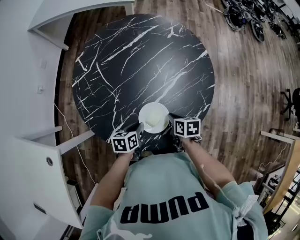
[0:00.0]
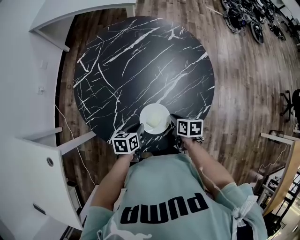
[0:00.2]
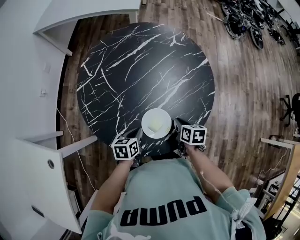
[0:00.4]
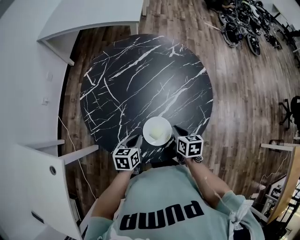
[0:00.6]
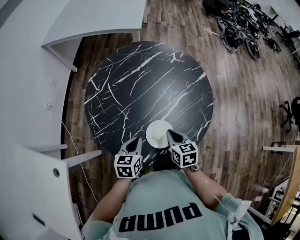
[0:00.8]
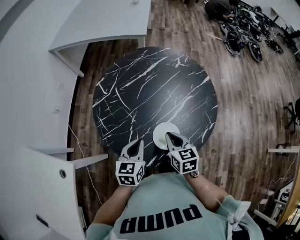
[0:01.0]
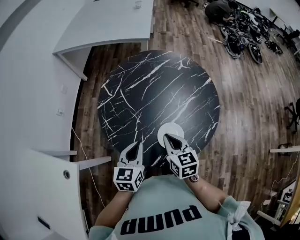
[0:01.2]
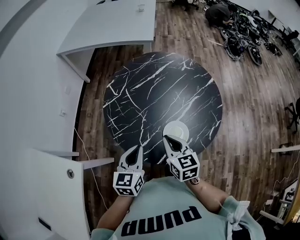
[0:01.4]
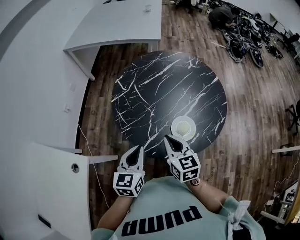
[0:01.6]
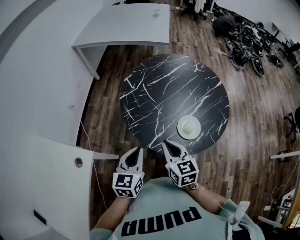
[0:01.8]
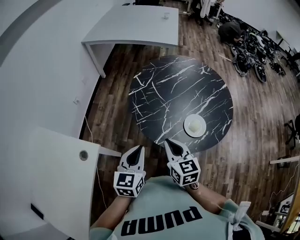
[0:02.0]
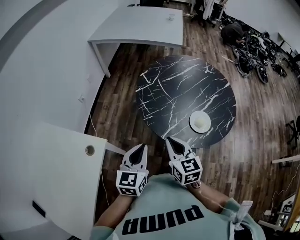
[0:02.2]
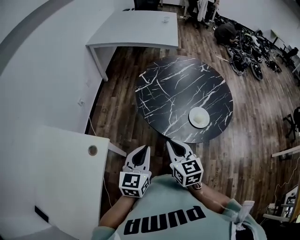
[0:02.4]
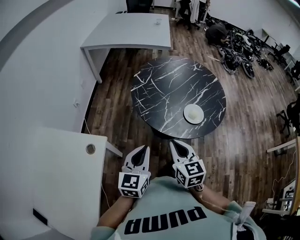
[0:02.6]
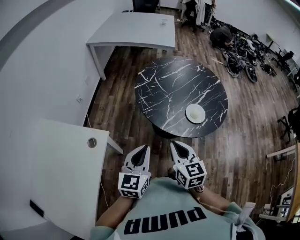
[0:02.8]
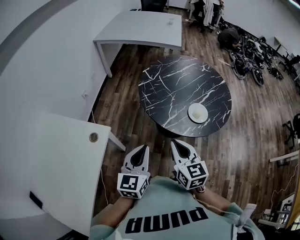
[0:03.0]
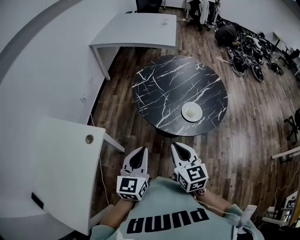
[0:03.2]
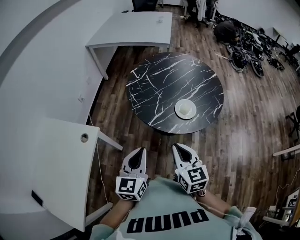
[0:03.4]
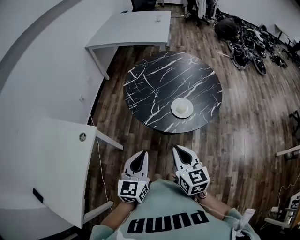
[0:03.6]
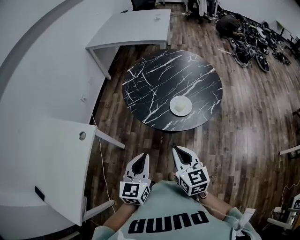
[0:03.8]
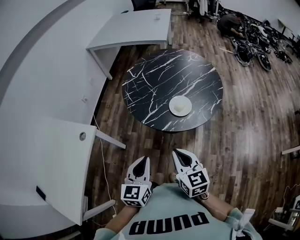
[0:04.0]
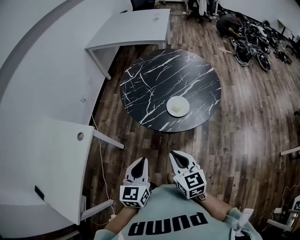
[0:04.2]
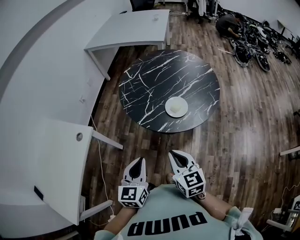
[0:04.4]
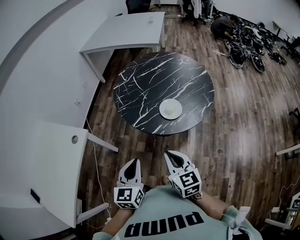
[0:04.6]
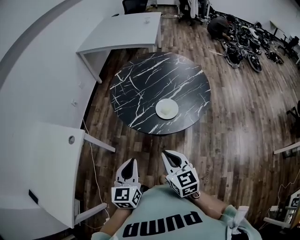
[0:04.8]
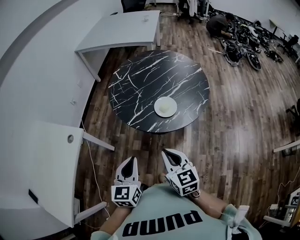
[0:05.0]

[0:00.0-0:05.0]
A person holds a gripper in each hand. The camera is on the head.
0:00.0 to 0:01.6: The two grippers go some 30 cm upward and to the left. The right gripper swivels about 40 degrees. Meanwhile the left gripper rotates approximately 40 degrees.
0:01.6 to 0:03.4: The grippers both shift backward by some 25 cm.
0:03.4 to 0:05.0: The right gripper heads to the right, covering approximately 10 cm, while the left gripper travels to the right and backward by about 10 cm.

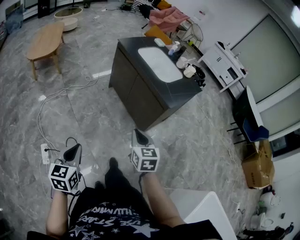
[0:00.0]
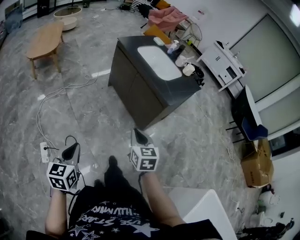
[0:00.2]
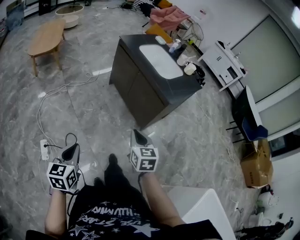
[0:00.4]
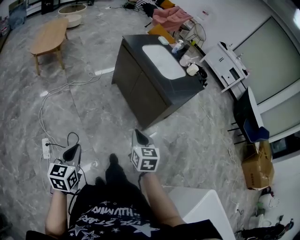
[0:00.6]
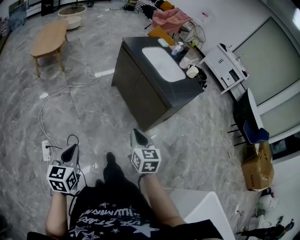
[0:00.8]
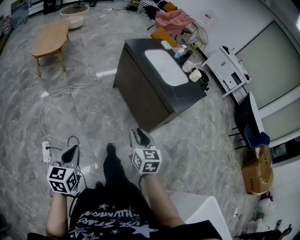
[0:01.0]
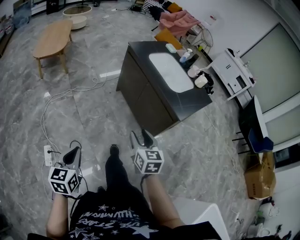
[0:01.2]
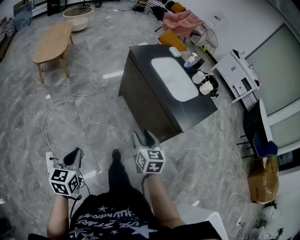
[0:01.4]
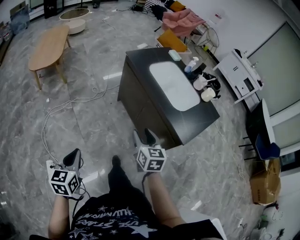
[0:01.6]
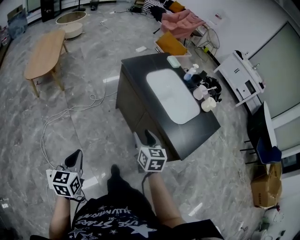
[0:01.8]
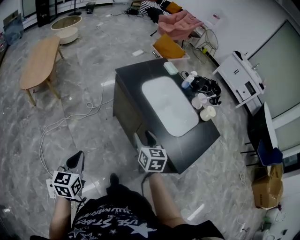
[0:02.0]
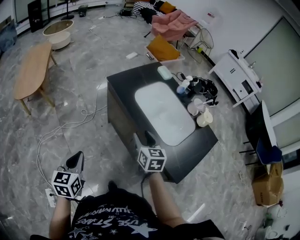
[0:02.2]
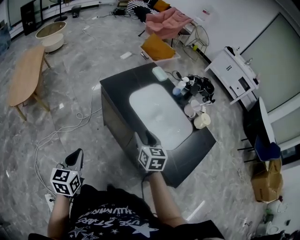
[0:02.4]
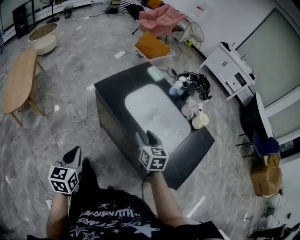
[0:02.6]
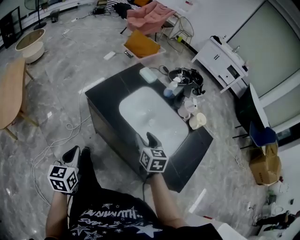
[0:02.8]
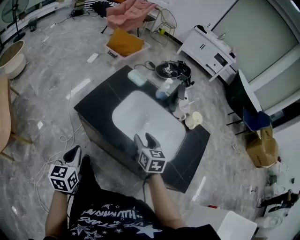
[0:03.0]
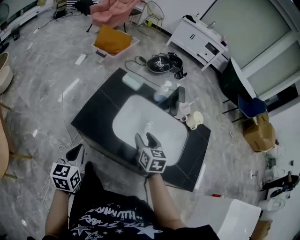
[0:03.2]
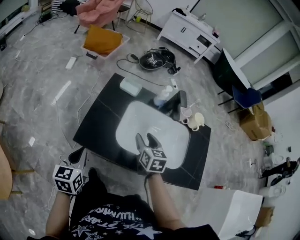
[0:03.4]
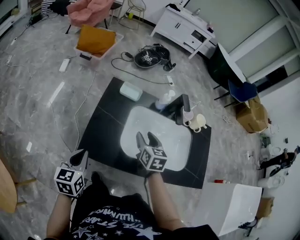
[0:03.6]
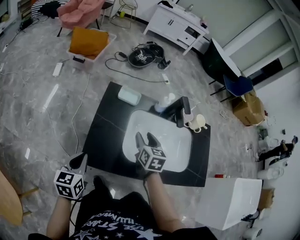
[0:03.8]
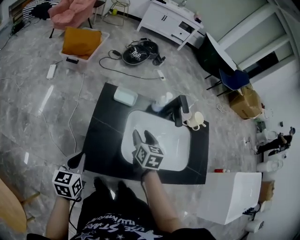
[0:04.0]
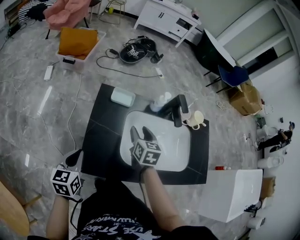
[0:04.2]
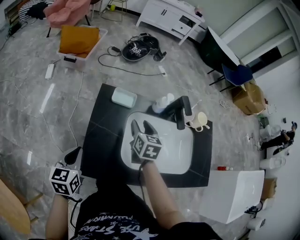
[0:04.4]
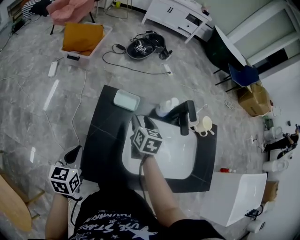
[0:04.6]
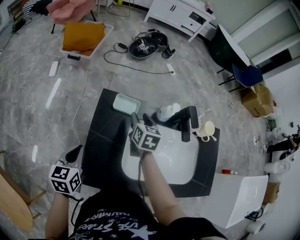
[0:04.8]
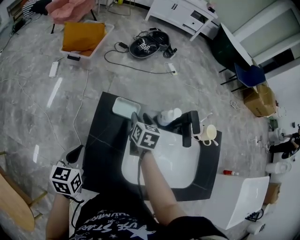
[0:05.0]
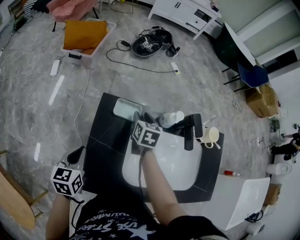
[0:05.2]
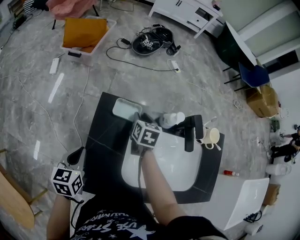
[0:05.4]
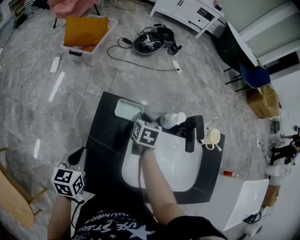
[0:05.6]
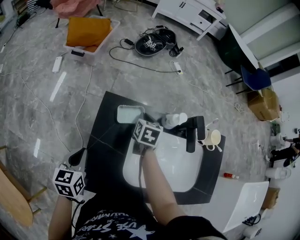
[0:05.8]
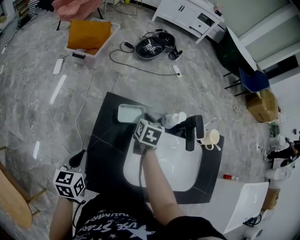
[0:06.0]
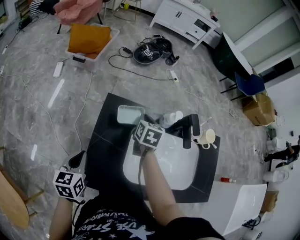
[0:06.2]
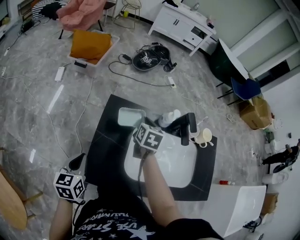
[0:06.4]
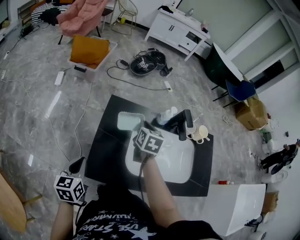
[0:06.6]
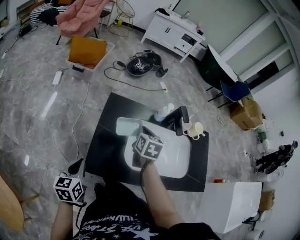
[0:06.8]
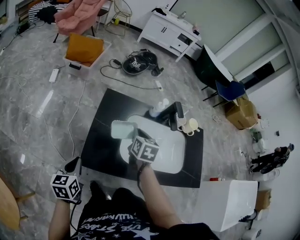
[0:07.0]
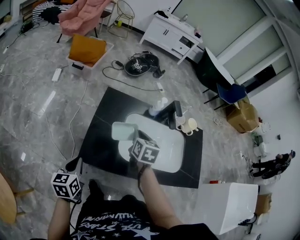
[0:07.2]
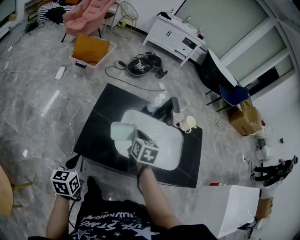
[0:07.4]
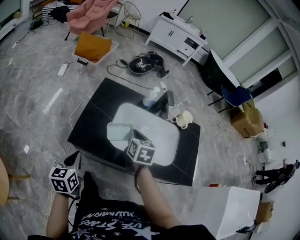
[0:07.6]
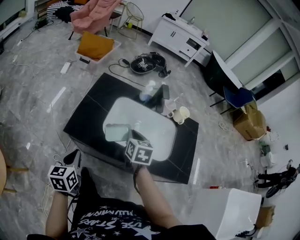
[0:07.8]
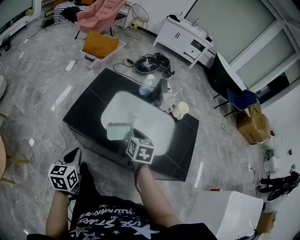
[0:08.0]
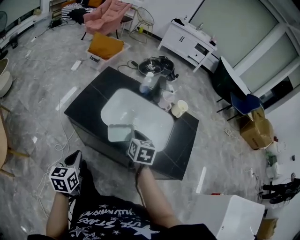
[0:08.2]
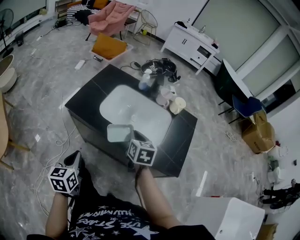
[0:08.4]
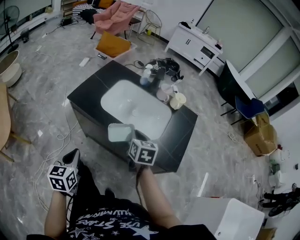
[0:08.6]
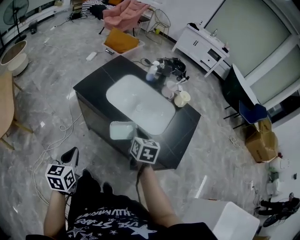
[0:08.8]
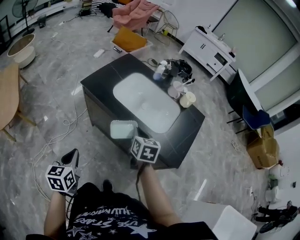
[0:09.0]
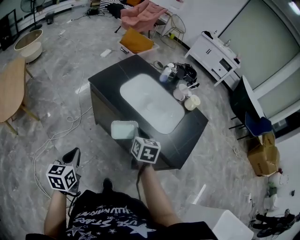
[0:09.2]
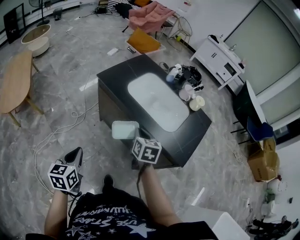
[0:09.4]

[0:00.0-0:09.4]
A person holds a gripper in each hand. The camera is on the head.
0:00.0 to 0:01.6: The grippers both shift forward by about 25 cm. The right gripper opens.
0:01.6 to 0:03.2: The pair of grippers is taken approximately 60 cm. The left gripper rotates approximately 40 degrees. The right gripper swivels some 40 degrees.
0:03.2 to 0:04.8: The grippers both shift forward by about 25 cm. The right gripper swivels some 20 degrees.
0:04.8 to 0:06.2: The right gripper closes up.
0:06.2 to 0:07.8: The left gripper moves backward and to the right, roughly 25 cm; the right gripper shifts about 30 cm backward.
0:07.8 to 0:09.4: Both grippers travel together backward, roughly 30 cm. The right gripper turns by approximately 20 degrees. Meanwhile the left gripper changes its angle by roughly 20 degrees.

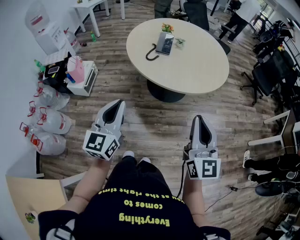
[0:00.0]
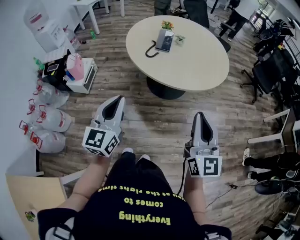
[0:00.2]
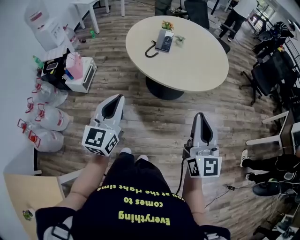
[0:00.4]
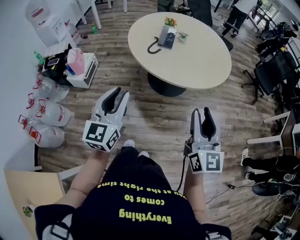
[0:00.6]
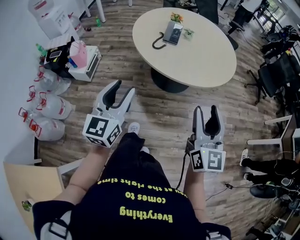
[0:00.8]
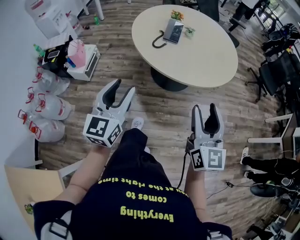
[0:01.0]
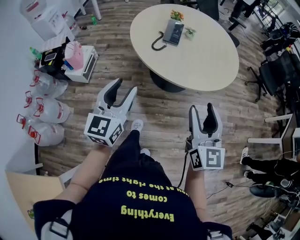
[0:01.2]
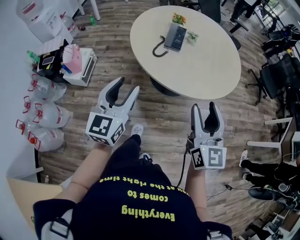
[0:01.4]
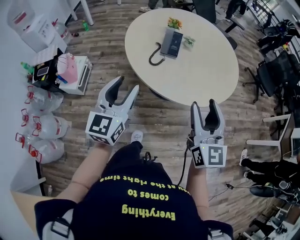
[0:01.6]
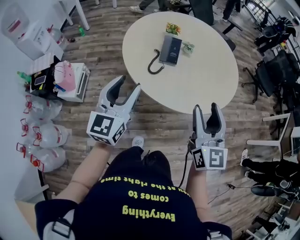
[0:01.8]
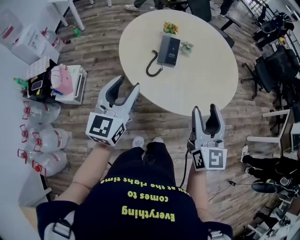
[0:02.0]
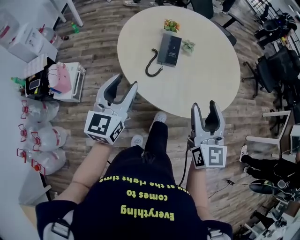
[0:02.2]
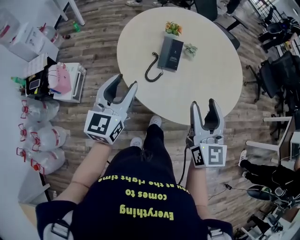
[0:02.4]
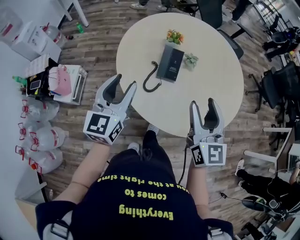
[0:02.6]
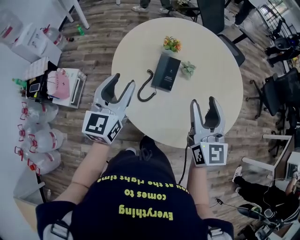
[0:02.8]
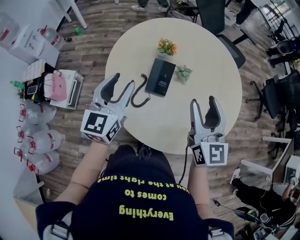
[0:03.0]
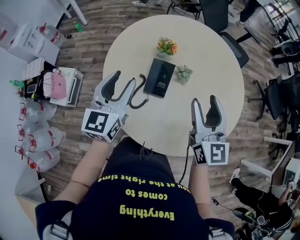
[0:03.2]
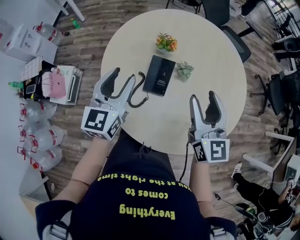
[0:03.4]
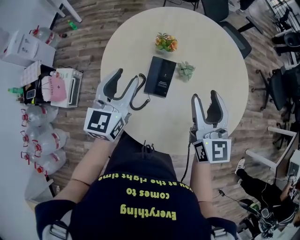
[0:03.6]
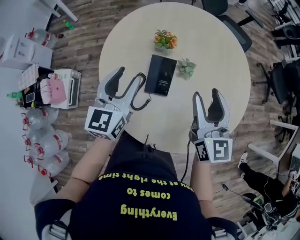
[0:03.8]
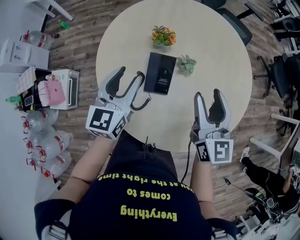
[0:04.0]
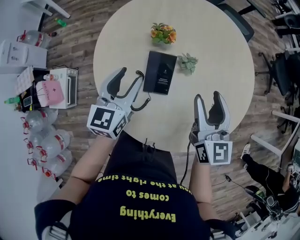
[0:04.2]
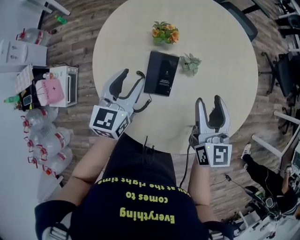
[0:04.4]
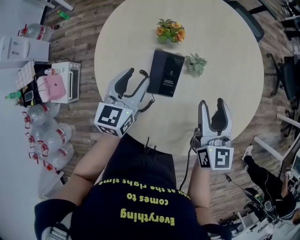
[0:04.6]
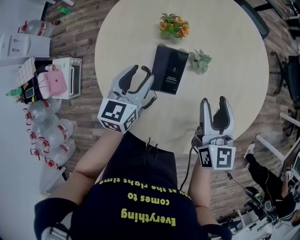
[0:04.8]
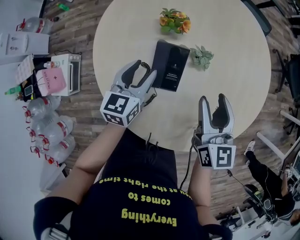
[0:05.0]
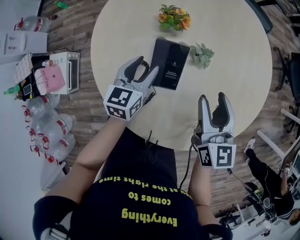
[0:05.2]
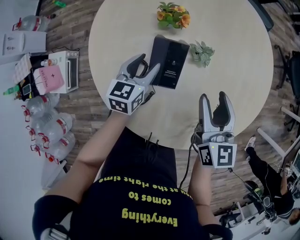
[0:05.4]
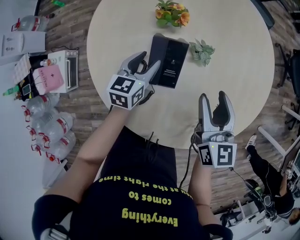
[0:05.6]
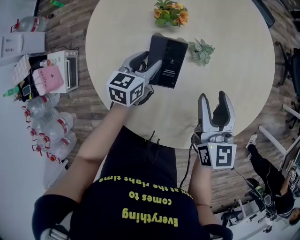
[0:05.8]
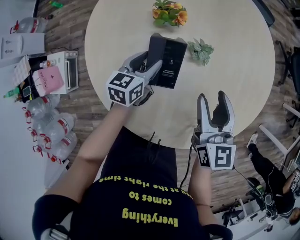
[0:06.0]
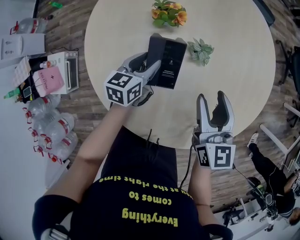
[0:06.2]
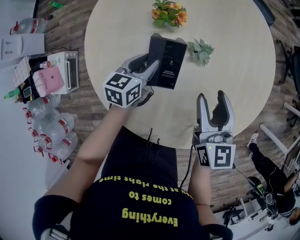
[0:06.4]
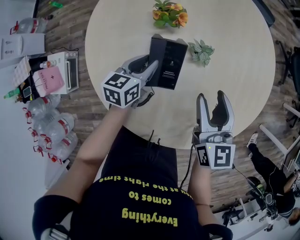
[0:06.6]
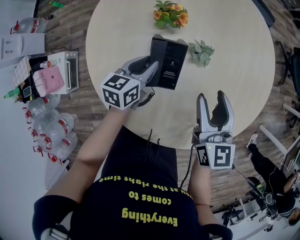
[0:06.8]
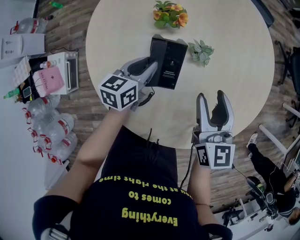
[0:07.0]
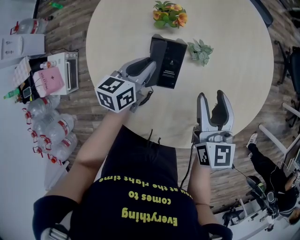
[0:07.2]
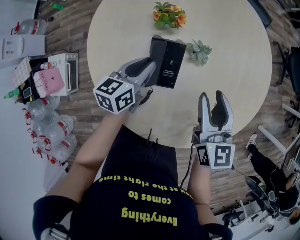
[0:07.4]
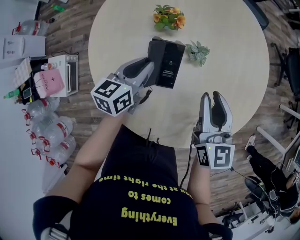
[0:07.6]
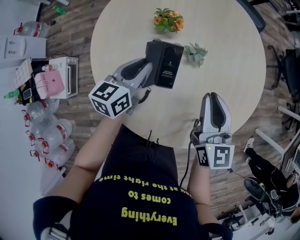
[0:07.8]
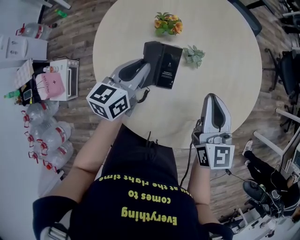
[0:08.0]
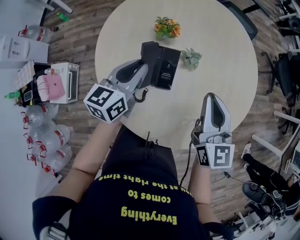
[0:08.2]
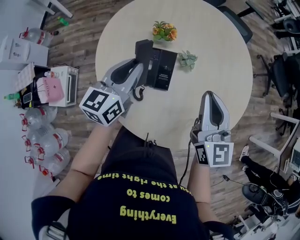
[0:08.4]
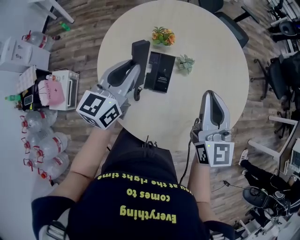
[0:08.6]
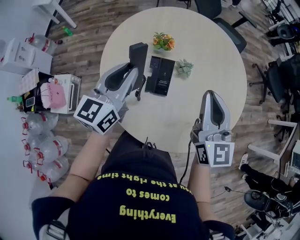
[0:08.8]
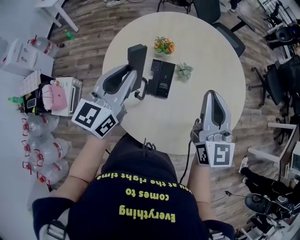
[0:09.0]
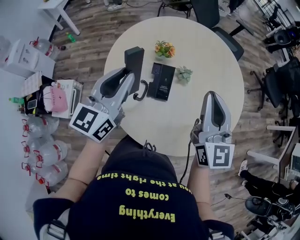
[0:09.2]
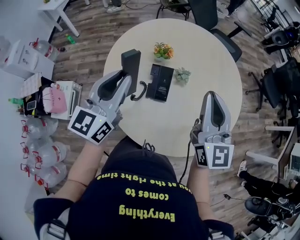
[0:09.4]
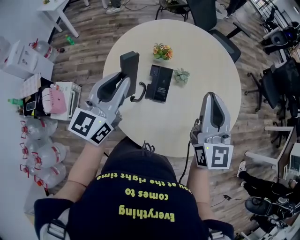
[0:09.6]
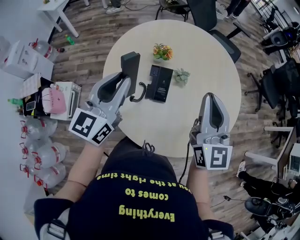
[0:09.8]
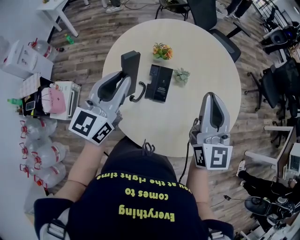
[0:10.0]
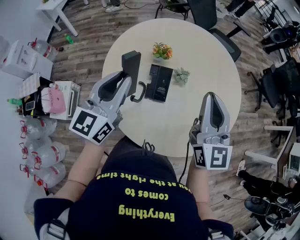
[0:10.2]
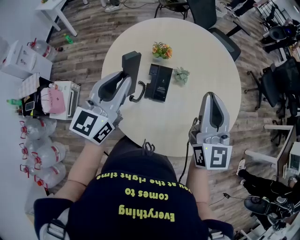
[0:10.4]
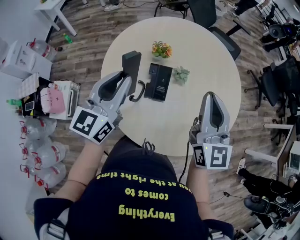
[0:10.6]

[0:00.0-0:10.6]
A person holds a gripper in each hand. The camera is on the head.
0:00.0 to 0:01.6: Both grippers travel together forward, some 20 cm. The right gripper opens, while the left gripper opens.
0:01.6 to 0:03.0: The grippers both shift forward by approximately 35 cm.
0:03.0 to 0:04.6: The two grippers go some 20 cm downward and forward.
0:04.6 to 0:06.0: The left gripper travels downward by some 10 cm.
0:06.0 to 0:07.6: The left gripper shifts some 5 cm upward, and closes. The right gripper closes.
0:07.6 to 0:09.0: The grippers both shift upward by some 20 cm. The left gripper turns by roughly 30 degrees. The right gripper turns by approximately 20 degrees, and closes its fingers.
0:09.0 to 0:10.6: The grippers make only small movements.
